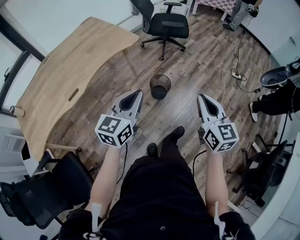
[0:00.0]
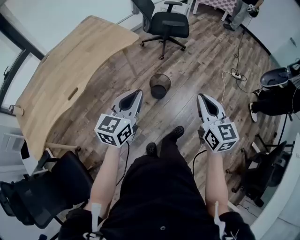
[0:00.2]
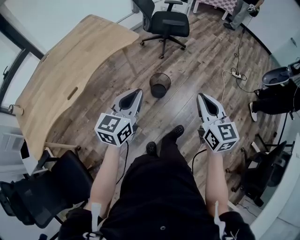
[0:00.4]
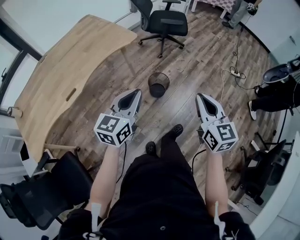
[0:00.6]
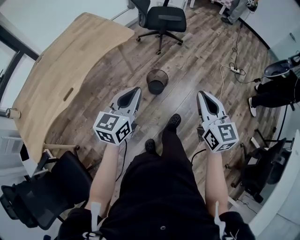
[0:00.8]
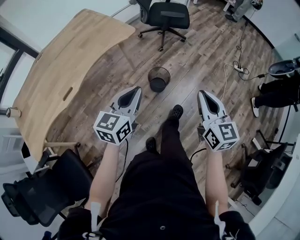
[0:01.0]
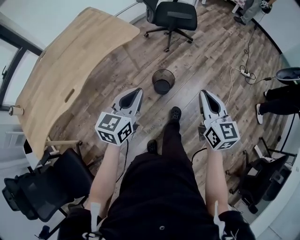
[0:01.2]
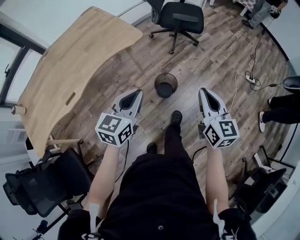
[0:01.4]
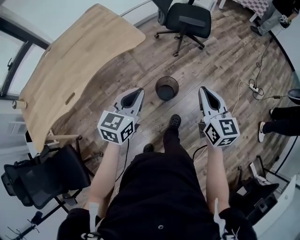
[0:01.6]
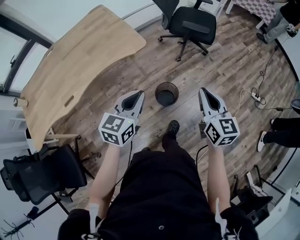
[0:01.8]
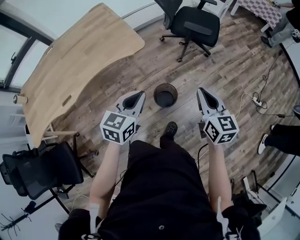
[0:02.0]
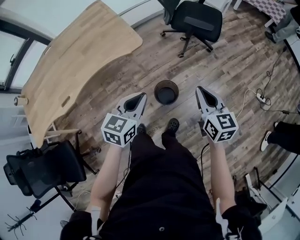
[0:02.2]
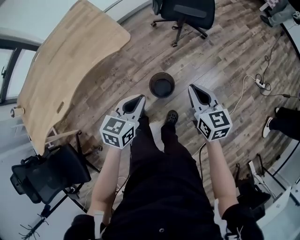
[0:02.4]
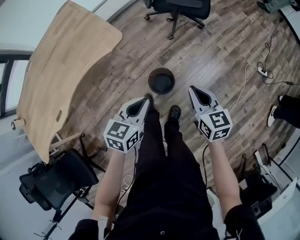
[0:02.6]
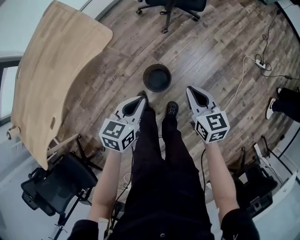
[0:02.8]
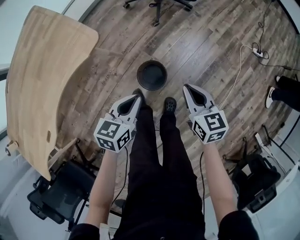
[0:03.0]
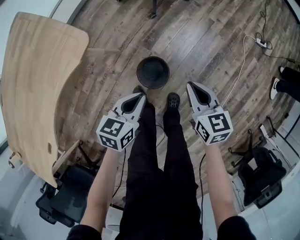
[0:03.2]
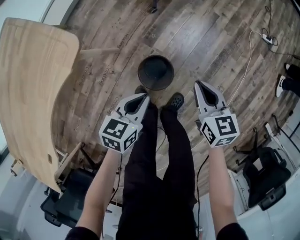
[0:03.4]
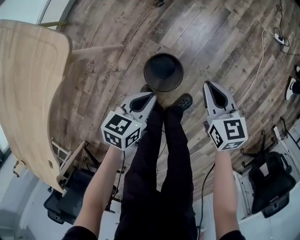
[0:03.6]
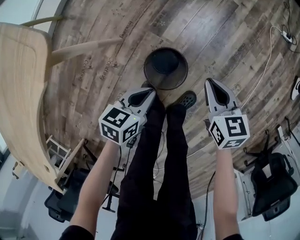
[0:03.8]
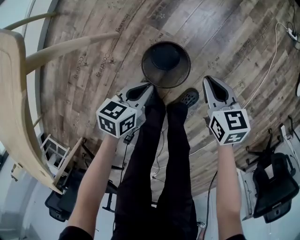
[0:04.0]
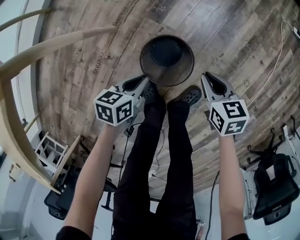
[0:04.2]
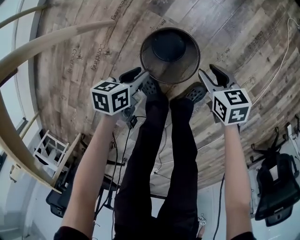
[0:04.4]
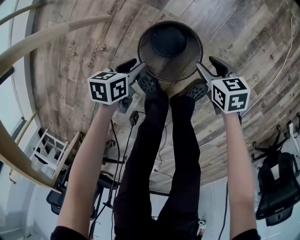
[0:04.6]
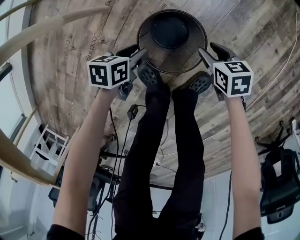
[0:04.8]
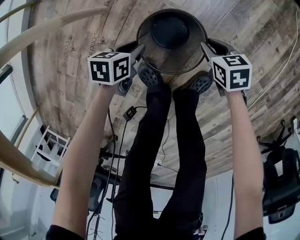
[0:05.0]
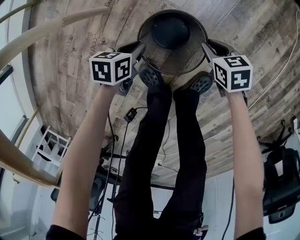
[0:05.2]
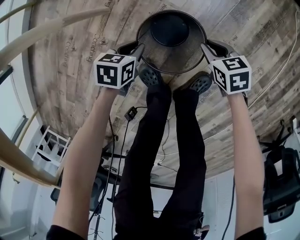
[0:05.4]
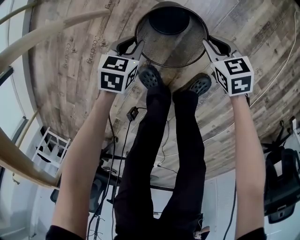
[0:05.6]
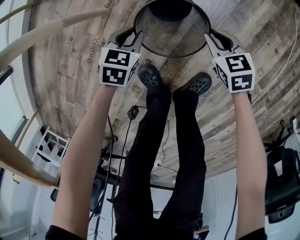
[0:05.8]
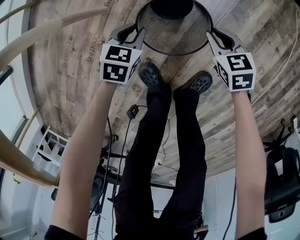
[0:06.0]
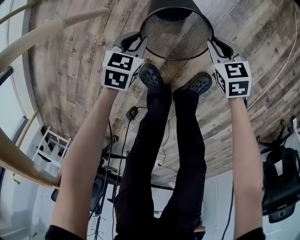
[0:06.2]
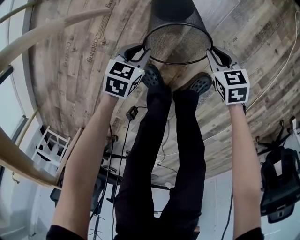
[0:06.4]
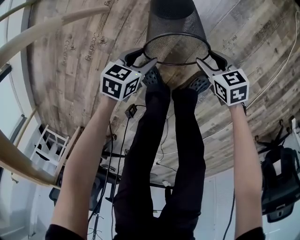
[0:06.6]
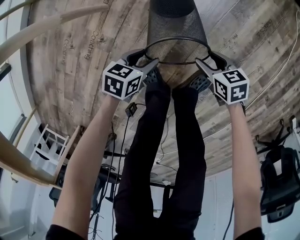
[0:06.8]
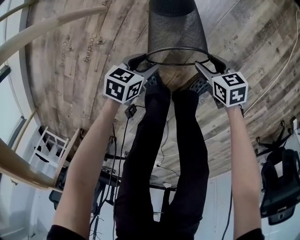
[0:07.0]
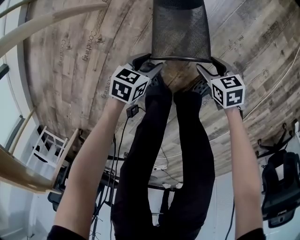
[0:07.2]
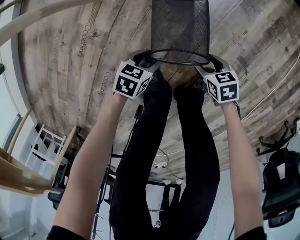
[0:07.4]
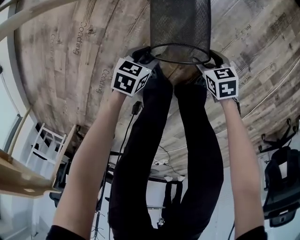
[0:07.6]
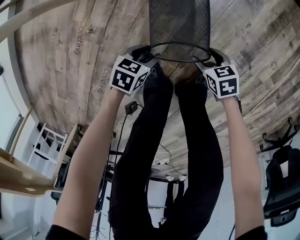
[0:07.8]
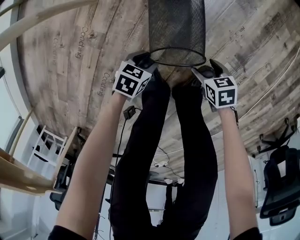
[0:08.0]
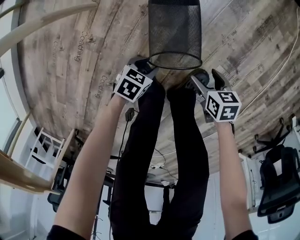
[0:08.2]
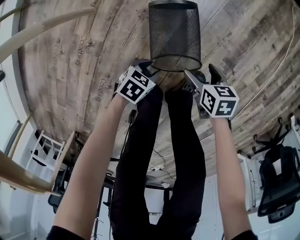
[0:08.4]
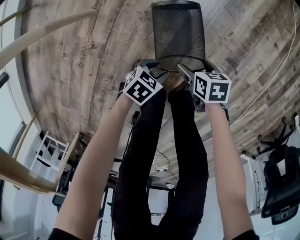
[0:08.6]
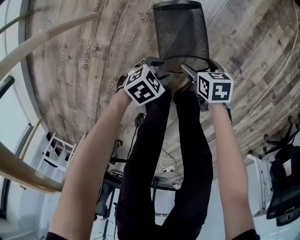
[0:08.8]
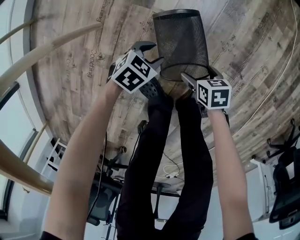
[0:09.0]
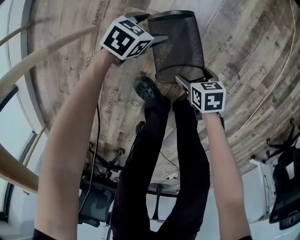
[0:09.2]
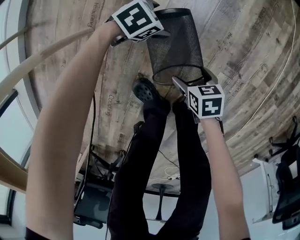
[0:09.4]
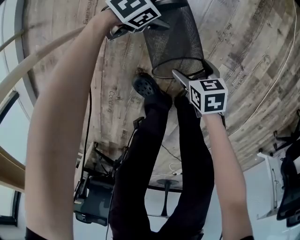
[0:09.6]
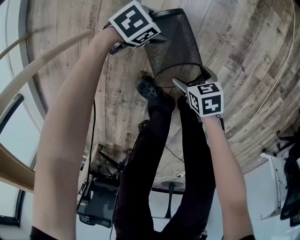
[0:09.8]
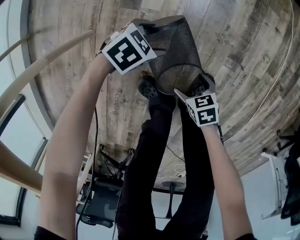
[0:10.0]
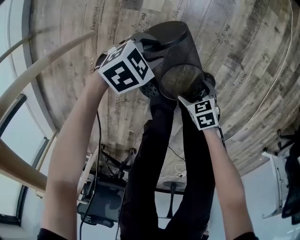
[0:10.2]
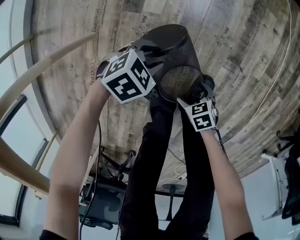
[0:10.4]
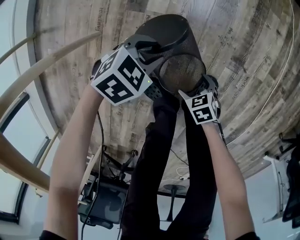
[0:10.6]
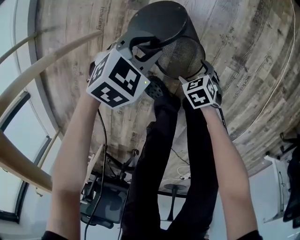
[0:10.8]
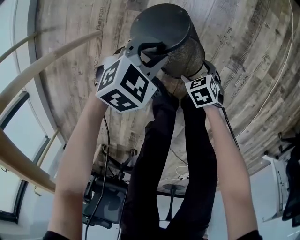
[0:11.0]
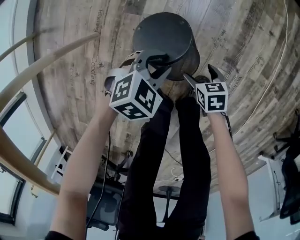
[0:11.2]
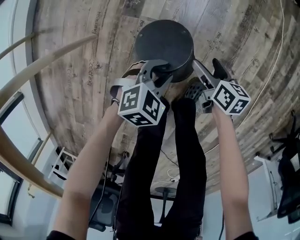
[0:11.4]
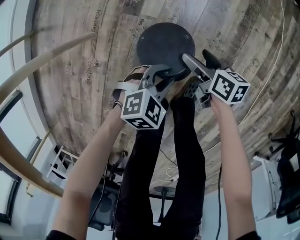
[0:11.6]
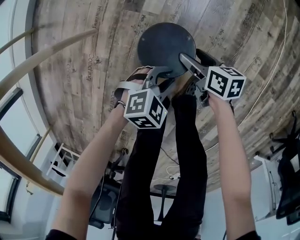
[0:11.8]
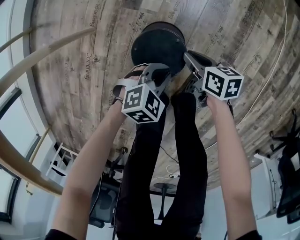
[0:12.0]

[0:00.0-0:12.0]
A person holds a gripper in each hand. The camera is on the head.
0:00.0 to 0:01.6: Both grippers move forward, roughly 20 cm.
0:01.6 to 0:03.0: The two grippers go some 25 cm downward and forward. The right gripper turns by approximately 20 degrees; the left gripper changes its angle by about 30 degrees.
0:03.0 to 0:04.4: Both grippers move downward, roughly 40 cm. The left gripper swivels roughly 30 degrees, while the right gripper rotates roughly 30 degrees.
0:04.4 to 0:06.0: The right gripper is displaced downward by approximately 5 cm. The left gripper changes place by some 10 cm, and rotates some 40 degrees.
0:06.0 to 0:07.6: The left gripper moves about 20 cm, and turns by about 20 degrees. Meanwhile the right gripper changes place by approximately 25 cm, changes its angle by approximately 20 degrees, and opens up.
0:07.6 to 0:09.0: The left gripper changes place by roughly 15 cm, and rotates roughly 30 degrees. The right gripper is displaced upward by roughly 5 cm, and changes its angle by about 20 degrees.
0:09.0 to 0:10.4: The right gripper ends up roughly 10 cm from where it was. Meanwhile the left gripper shifts some 5 cm upward, turns by approximately 20 degrees, and opens and closes again.
0:10.4 to 0:12.0: The right gripper moves about 20 cm, turns by some 30 degrees, and closes up. The left gripper changes place by about 10 cm.

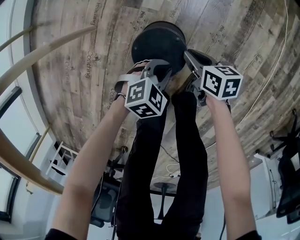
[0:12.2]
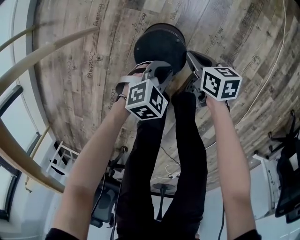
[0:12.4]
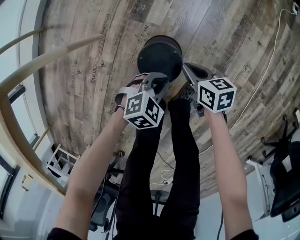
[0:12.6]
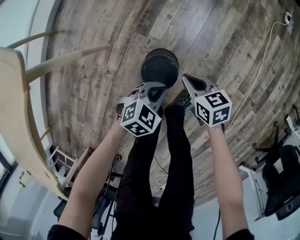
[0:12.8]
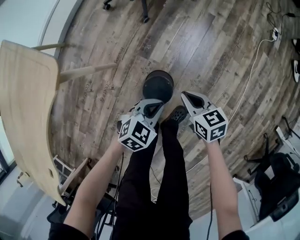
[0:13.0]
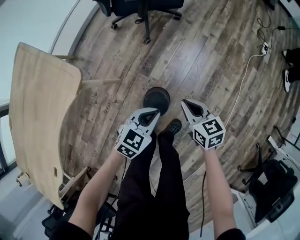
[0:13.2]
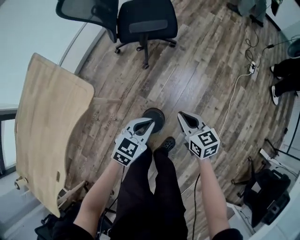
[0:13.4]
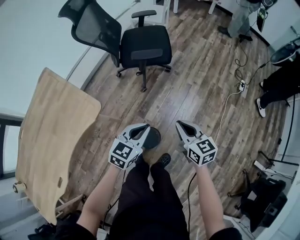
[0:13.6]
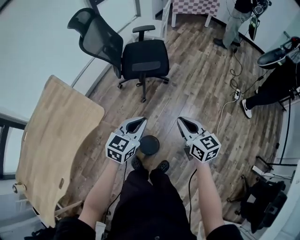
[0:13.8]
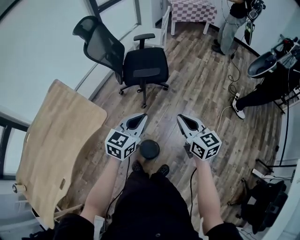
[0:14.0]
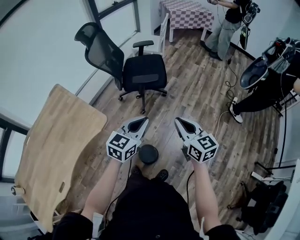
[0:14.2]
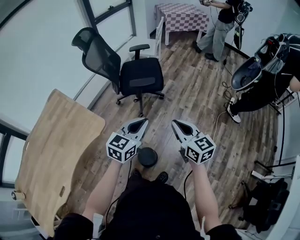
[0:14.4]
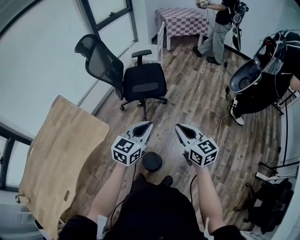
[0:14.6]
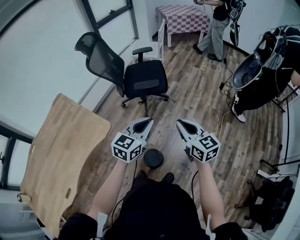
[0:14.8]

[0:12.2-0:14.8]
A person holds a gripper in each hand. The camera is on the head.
0:12.2 to 0:13.4: The two grippers go about 50 cm upward. The right gripper changes its angle by about 40 degrees, while the left gripper turns by roughly 40 degrees.
0:13.4 to 0:14.8: The grippers both shift upward by approximately 25 cm. The right gripper swivels about 20 degrees, while the left gripper changes its angle by some 20 degrees.

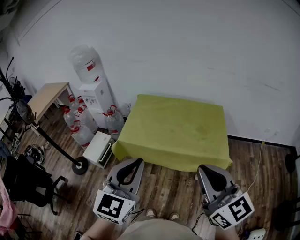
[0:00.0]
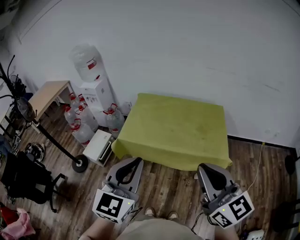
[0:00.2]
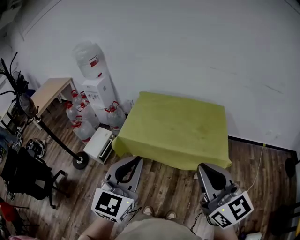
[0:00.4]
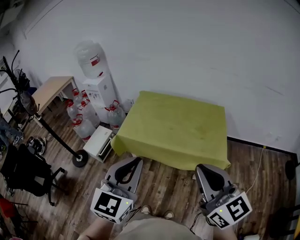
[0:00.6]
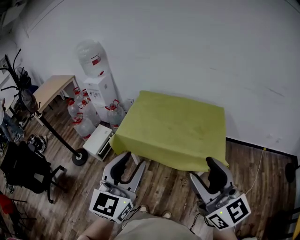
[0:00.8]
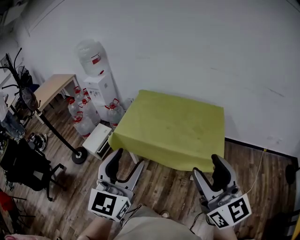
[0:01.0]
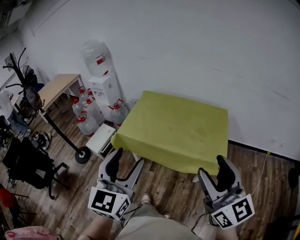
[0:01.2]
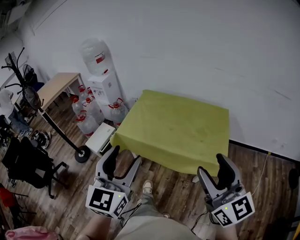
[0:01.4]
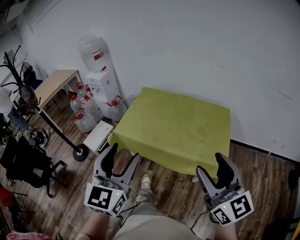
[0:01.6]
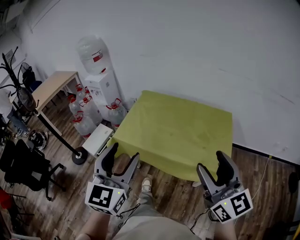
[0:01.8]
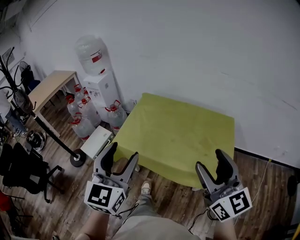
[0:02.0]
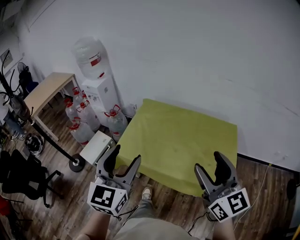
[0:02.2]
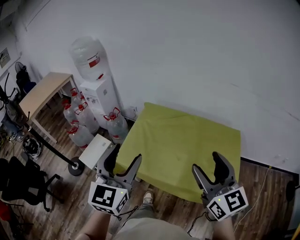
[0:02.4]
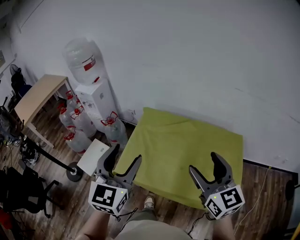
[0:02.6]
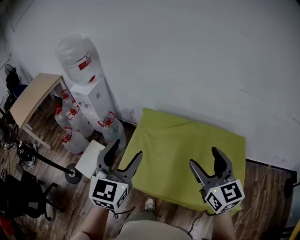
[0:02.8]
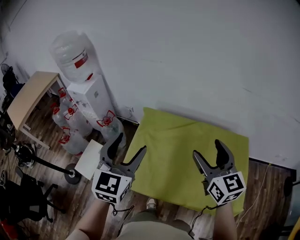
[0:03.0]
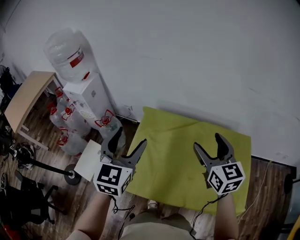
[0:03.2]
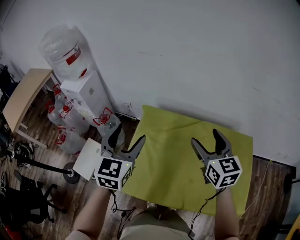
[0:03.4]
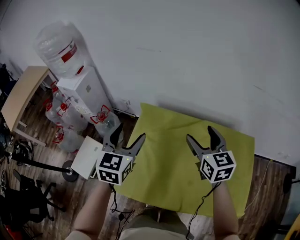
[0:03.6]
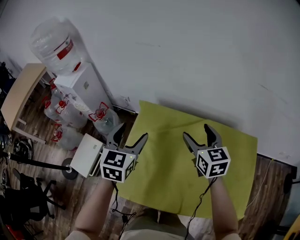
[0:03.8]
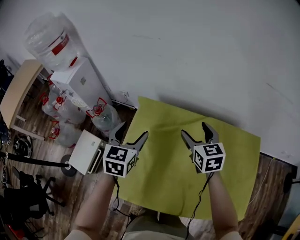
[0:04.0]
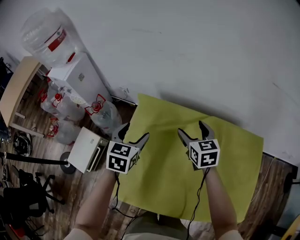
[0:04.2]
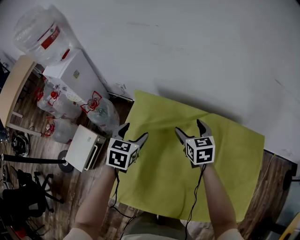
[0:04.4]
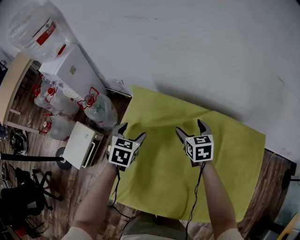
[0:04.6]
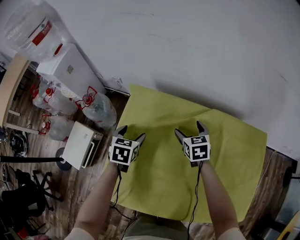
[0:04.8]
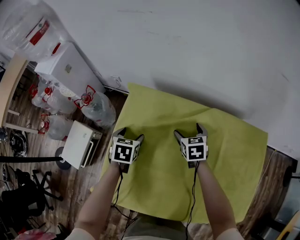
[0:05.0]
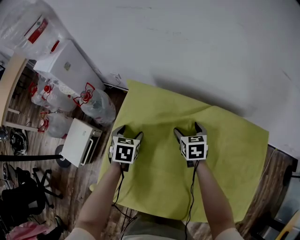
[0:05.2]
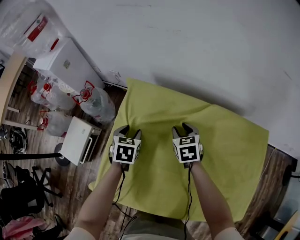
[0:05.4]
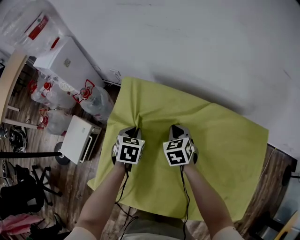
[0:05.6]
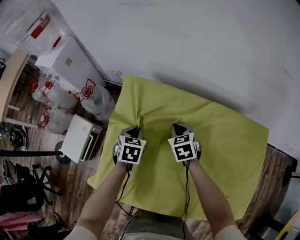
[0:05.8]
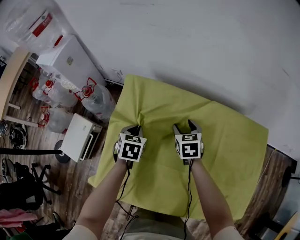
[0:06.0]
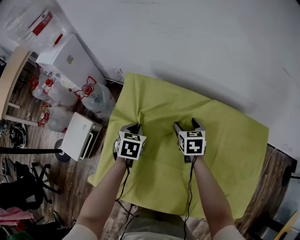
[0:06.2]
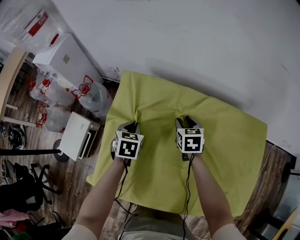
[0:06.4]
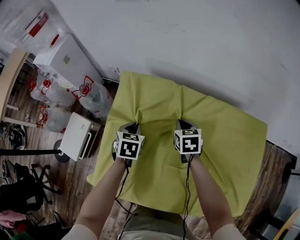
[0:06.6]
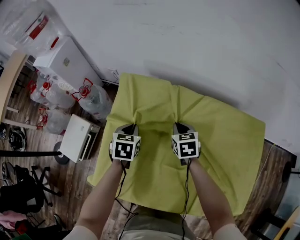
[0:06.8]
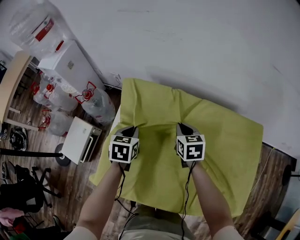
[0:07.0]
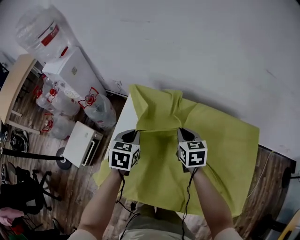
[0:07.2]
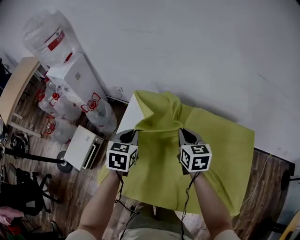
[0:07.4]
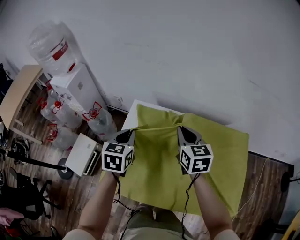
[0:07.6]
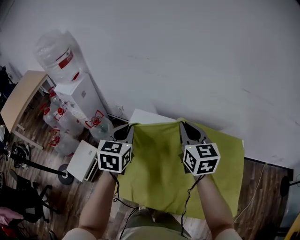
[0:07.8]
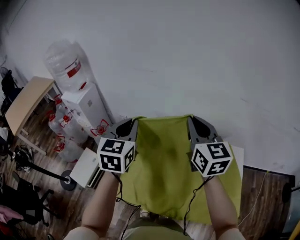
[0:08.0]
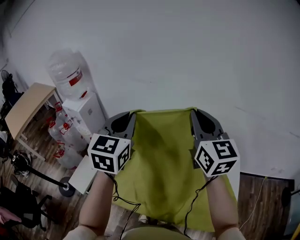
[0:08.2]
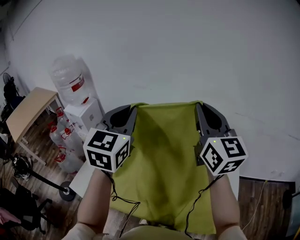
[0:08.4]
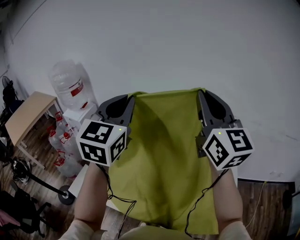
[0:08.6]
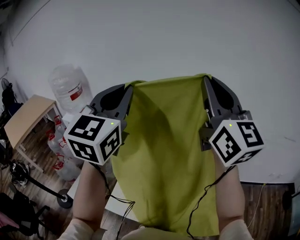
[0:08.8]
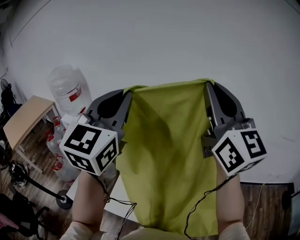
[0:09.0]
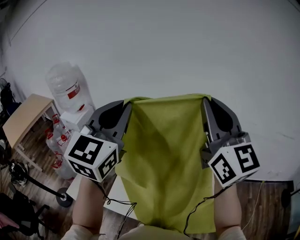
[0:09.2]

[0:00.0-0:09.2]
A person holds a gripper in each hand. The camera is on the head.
0:00.0 to 0:01.6: The right gripper shifts approximately 15 cm to the right and forward, and opens its fingers; the left gripper changes place by some 5 cm, and opens its fingers.
0:01.6 to 0:03.0: Both grippers are carried forward, about 50 cm.
0:03.0 to 0:04.6: The two grippers go roughly 40 cm downward and forward. The left gripper tips its fingers downward by about 40 degrees; the right gripper angles its fingers downward, by approximately 30 degrees.
0:04.6 to 0:06.2: The grippers both shift downward by some 5 cm. The left gripper closes up, while the right gripper closes, then opens again.
0:06.2 to 0:07.6: The grippers both shift upward by approximately 25 cm. The right gripper rotates roughly 20 degrees, and closes.
0:07.6 to 0:09.2: The grippers both shift upward by some 40 cm. The left gripper points its fingers approximately 40 degrees further upward, while the right gripper points its fingers about 40 degrees further upward.
